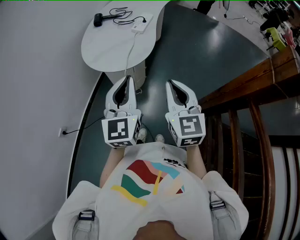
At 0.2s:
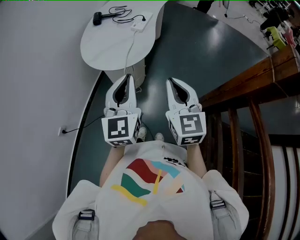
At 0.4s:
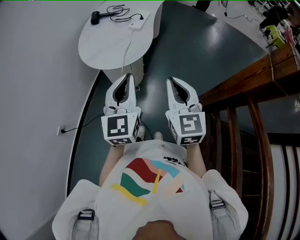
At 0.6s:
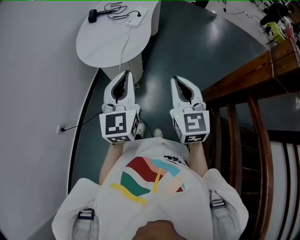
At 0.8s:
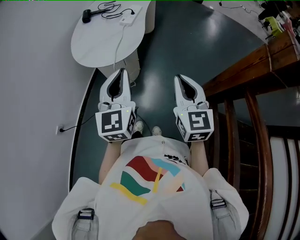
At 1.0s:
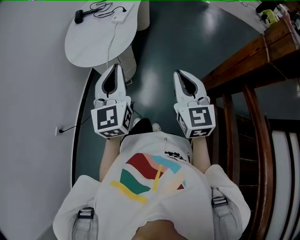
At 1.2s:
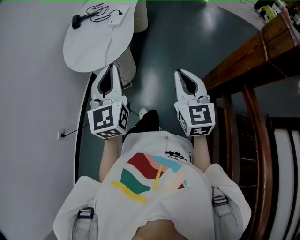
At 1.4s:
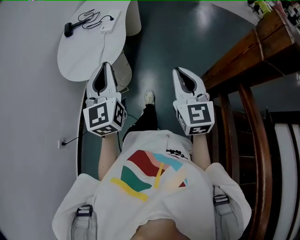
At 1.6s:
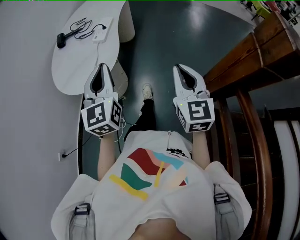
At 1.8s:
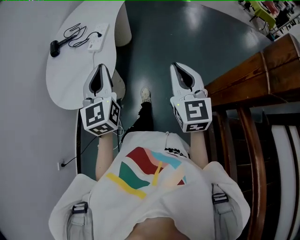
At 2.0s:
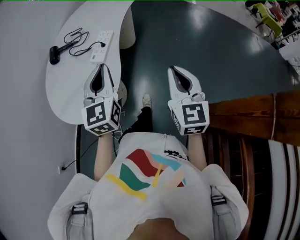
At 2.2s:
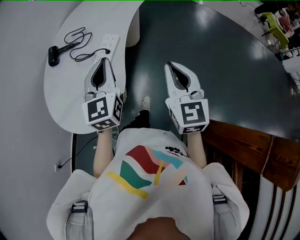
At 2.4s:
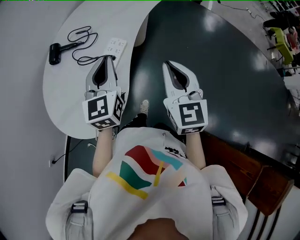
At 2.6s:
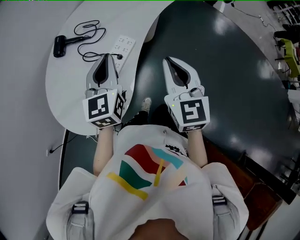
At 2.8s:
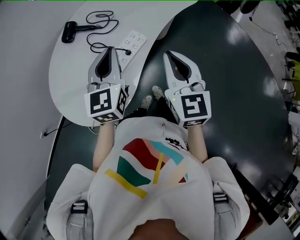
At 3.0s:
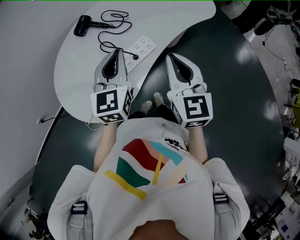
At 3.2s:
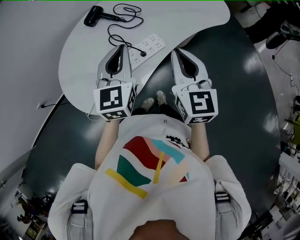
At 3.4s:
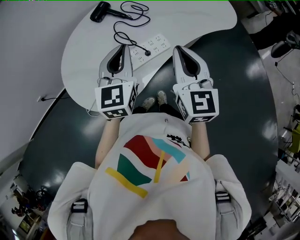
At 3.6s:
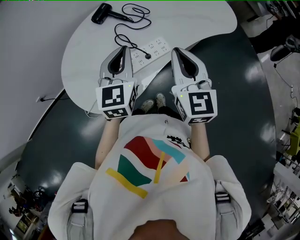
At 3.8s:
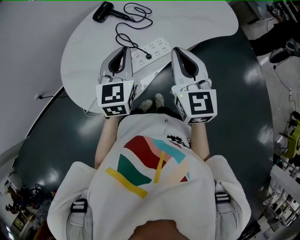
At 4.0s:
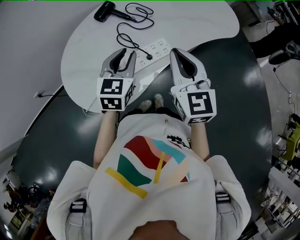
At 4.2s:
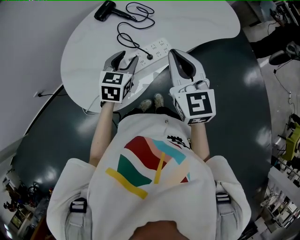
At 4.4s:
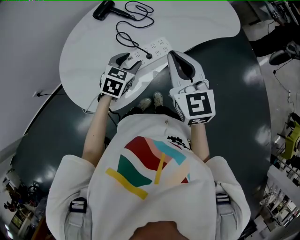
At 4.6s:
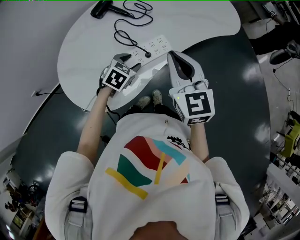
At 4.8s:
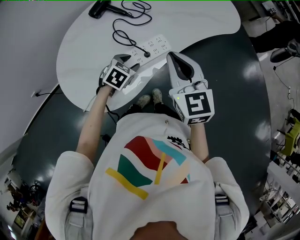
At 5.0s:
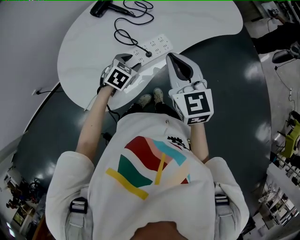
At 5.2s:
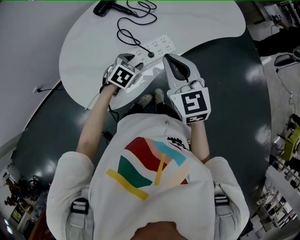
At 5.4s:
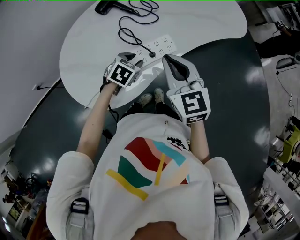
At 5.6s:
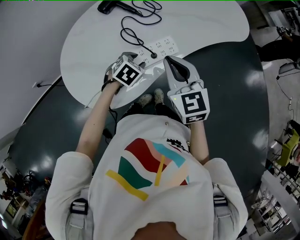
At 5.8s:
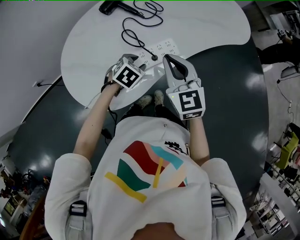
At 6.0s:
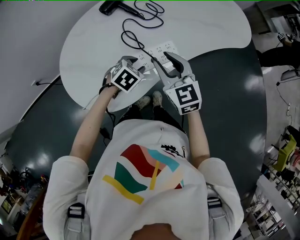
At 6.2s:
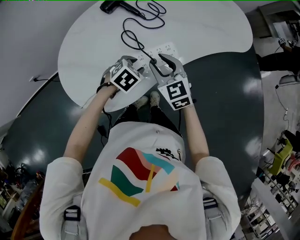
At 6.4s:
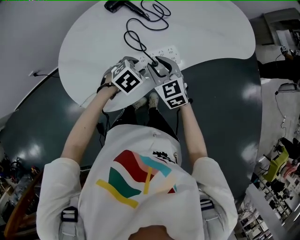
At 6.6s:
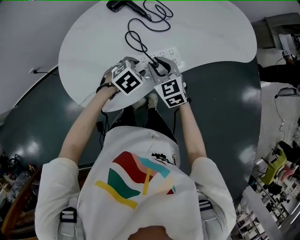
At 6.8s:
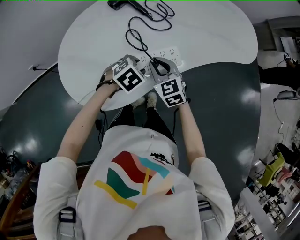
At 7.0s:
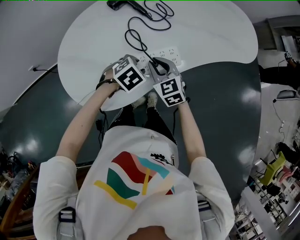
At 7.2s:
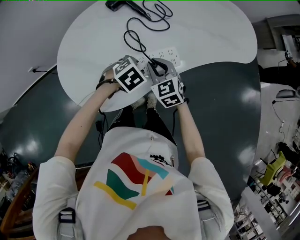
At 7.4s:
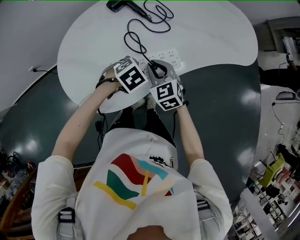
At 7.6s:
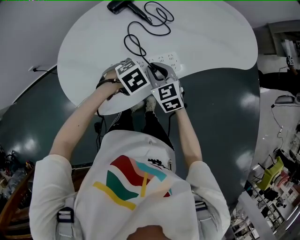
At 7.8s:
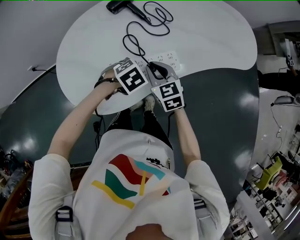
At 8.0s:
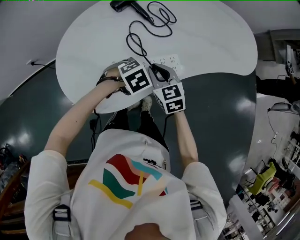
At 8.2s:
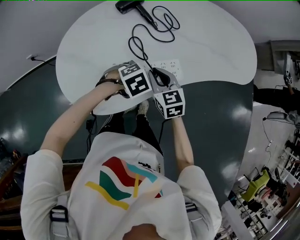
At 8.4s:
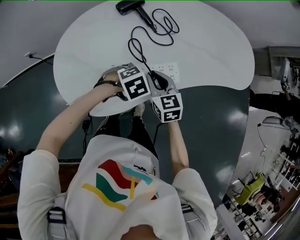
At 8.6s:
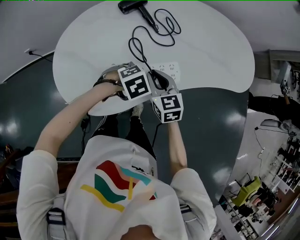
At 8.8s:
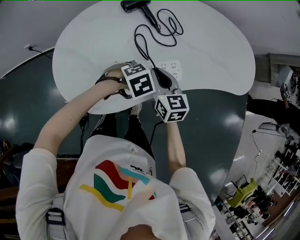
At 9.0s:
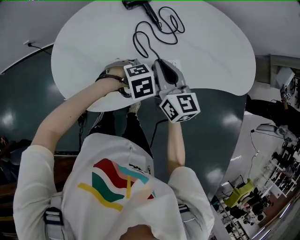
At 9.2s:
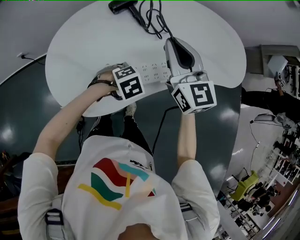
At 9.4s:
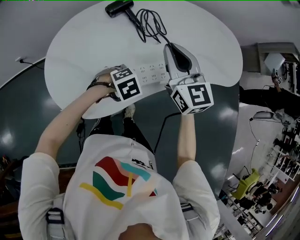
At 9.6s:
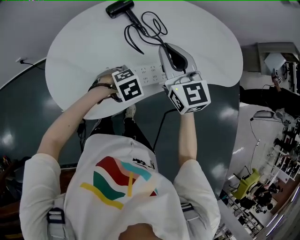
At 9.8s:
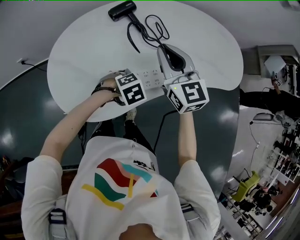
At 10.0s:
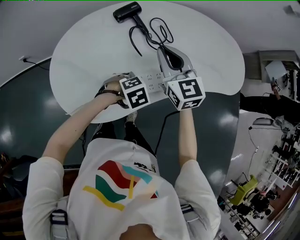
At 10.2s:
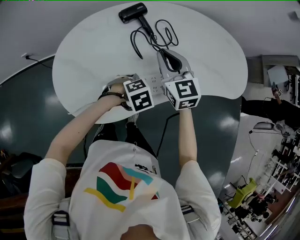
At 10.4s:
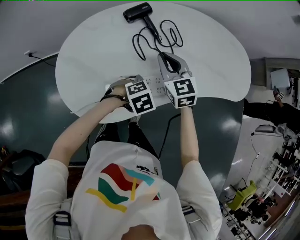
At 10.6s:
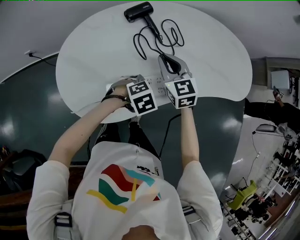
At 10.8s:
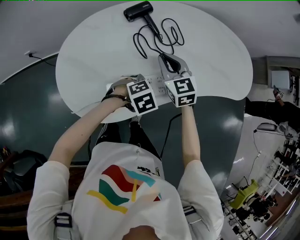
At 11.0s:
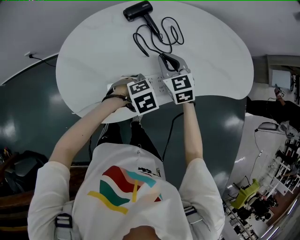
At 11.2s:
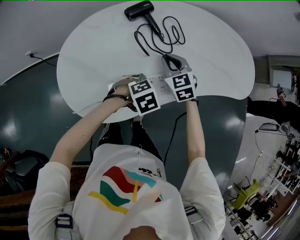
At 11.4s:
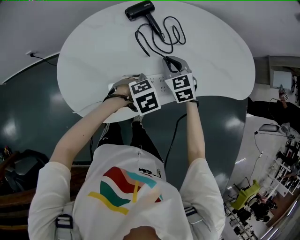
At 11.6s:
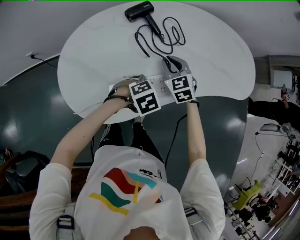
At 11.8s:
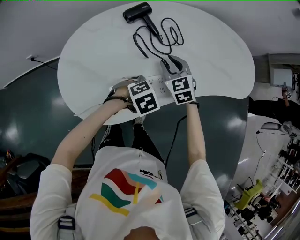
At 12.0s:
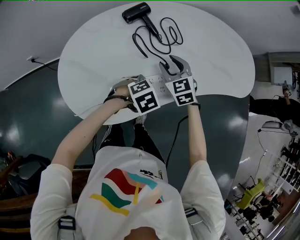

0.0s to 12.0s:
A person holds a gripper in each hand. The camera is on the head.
0.0s to 1.6s: The right gripper shifts about 20 cm to the right and forward, while the left gripper goes some 15 cm forward and to the right.
1.6s to 3.0s: The right gripper moves roughly 50 cm, and changes its angle by about 40 degrees. The left gripper changes place by some 40 cm, and rotates some 30 degrees.
3.0s to 4.4s: The right gripper moves forward, about 5 cm, while the left gripper shifts about 20 cm downward, tips its fingers downward by approximately 30 degrees, and opens up.
4.4s to 6.0s: The right gripper moves downward and to the left, roughly 10 cm, and opens its fingers, while the left gripper goes about 5 cm downward.
6.0s to 7.6s: The right gripper heads downward, covering approximately 10 cm, and closes.
7.6s to 9.0s: The right gripper goes approximately 10 cm upward, and turns by about 20 degrees.
9.0s to 10.4s: The right gripper goes upward and returns, approximately 10 cm each way, and changes its angle by approximately 20 degrees.
10.4s to 12.0s: The right gripper travels downward by about 5 cm, and opens its fingers.

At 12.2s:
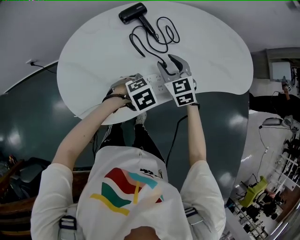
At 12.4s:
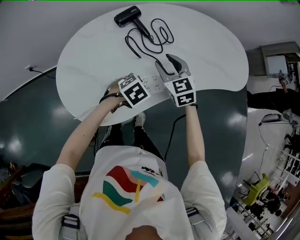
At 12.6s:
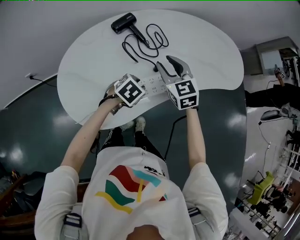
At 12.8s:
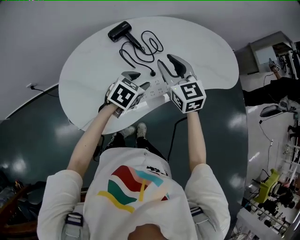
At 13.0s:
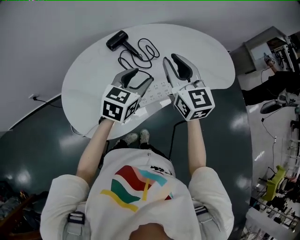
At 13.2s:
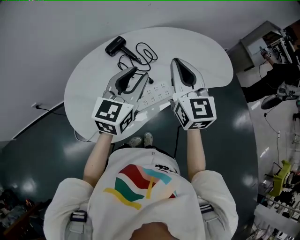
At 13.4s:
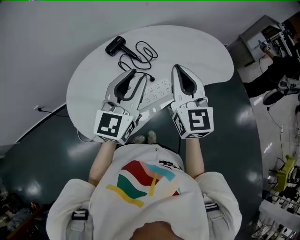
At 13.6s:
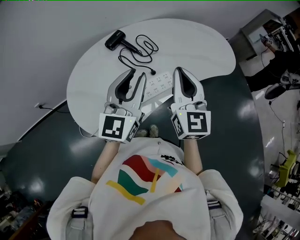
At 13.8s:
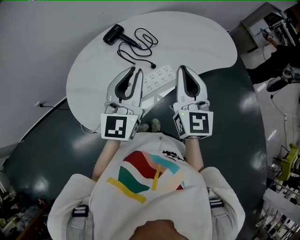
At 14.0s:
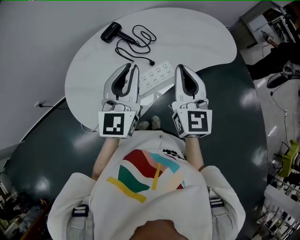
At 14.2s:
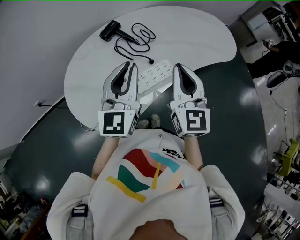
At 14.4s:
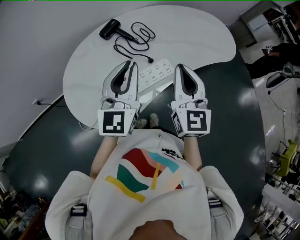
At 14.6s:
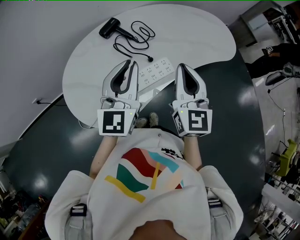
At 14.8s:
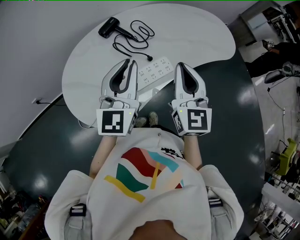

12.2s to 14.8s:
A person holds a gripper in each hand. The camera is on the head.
12.2s to 13.4s: Both grippers travel together upward, about 30 cm. The left gripper angles its fingers upward, by approximately 80 degrees, while the right gripper tilts its fingers about 30 degrees upward, and closes its fingers.
13.4s to 14.8s: The right gripper is displaced downward by some 5 cm.

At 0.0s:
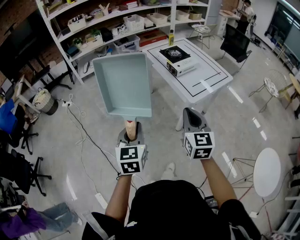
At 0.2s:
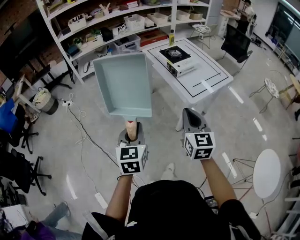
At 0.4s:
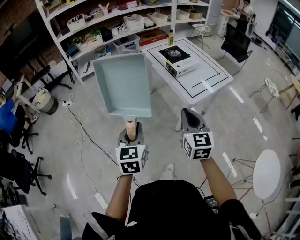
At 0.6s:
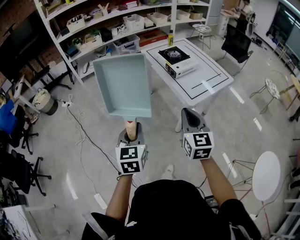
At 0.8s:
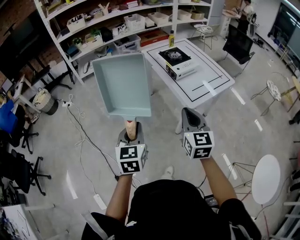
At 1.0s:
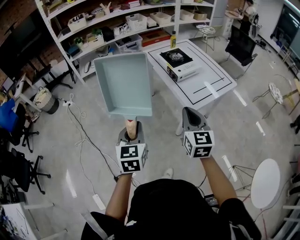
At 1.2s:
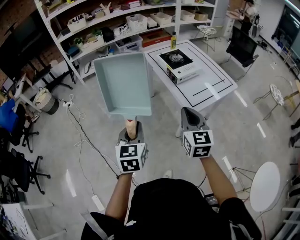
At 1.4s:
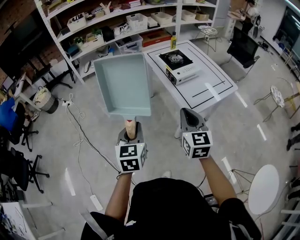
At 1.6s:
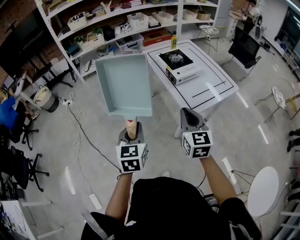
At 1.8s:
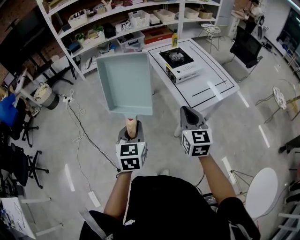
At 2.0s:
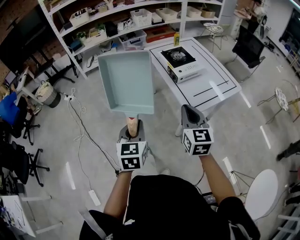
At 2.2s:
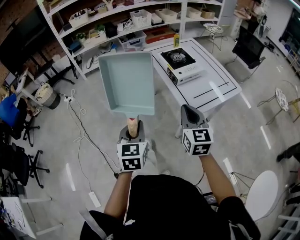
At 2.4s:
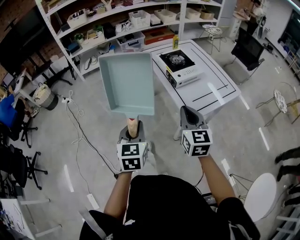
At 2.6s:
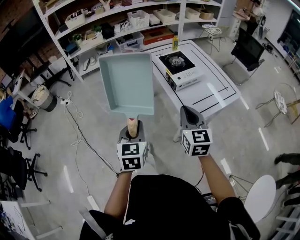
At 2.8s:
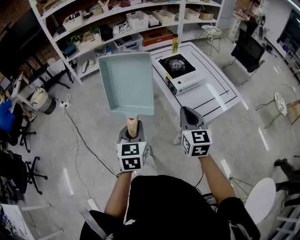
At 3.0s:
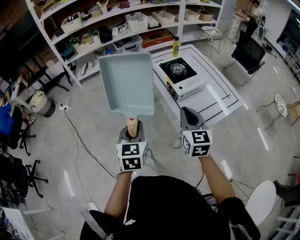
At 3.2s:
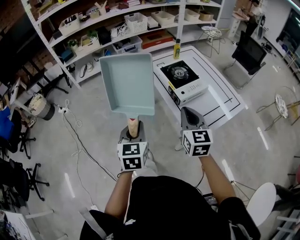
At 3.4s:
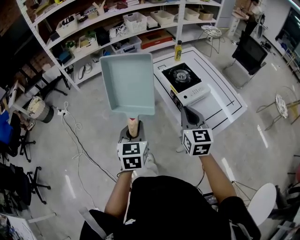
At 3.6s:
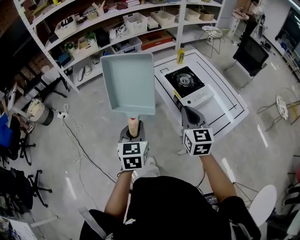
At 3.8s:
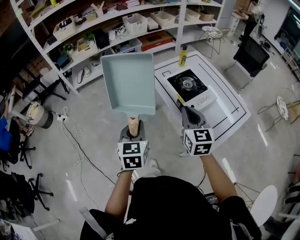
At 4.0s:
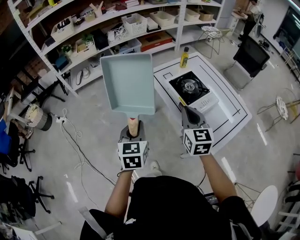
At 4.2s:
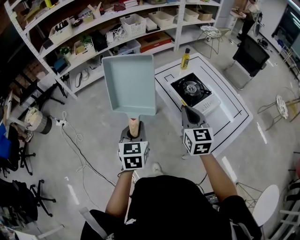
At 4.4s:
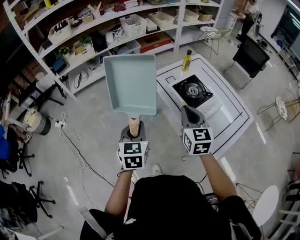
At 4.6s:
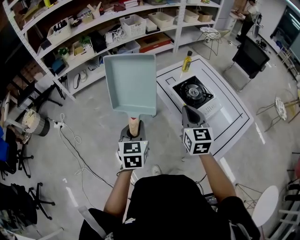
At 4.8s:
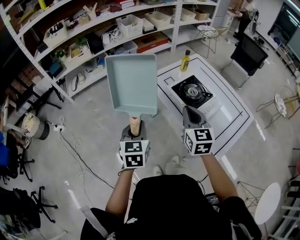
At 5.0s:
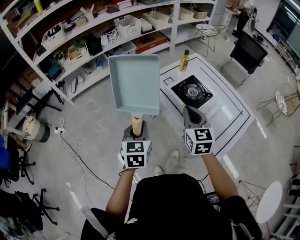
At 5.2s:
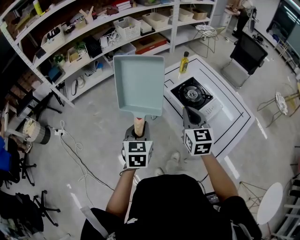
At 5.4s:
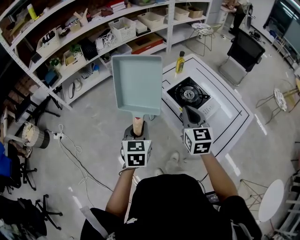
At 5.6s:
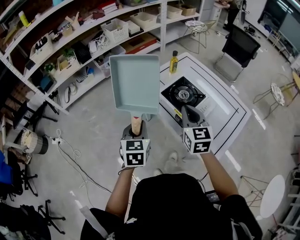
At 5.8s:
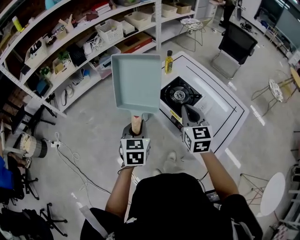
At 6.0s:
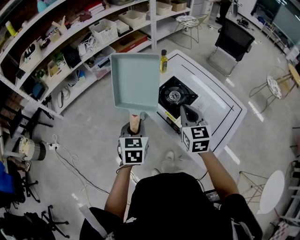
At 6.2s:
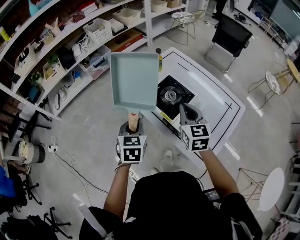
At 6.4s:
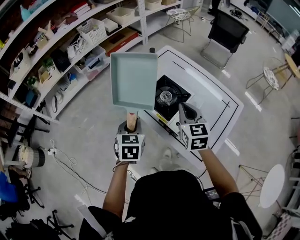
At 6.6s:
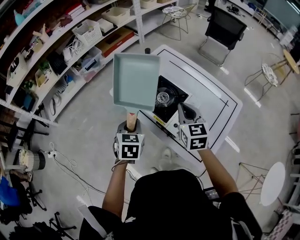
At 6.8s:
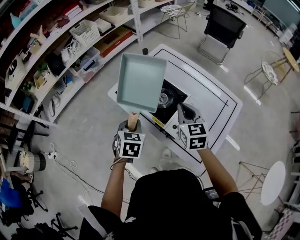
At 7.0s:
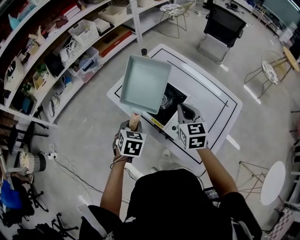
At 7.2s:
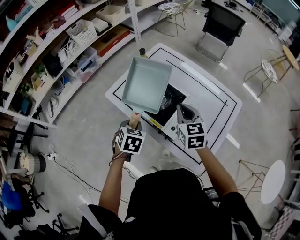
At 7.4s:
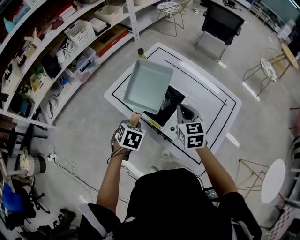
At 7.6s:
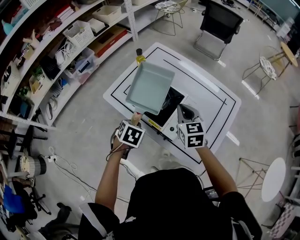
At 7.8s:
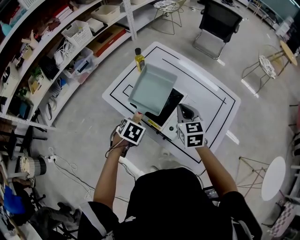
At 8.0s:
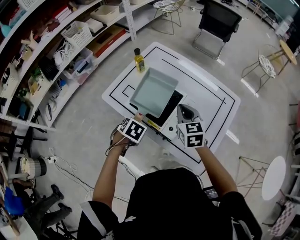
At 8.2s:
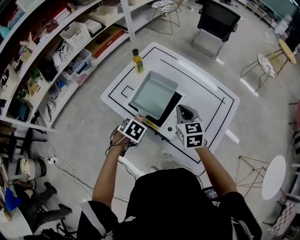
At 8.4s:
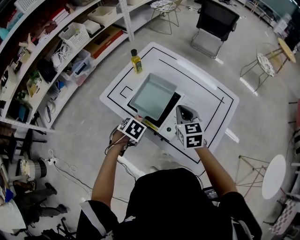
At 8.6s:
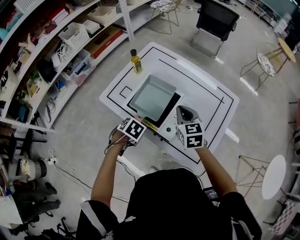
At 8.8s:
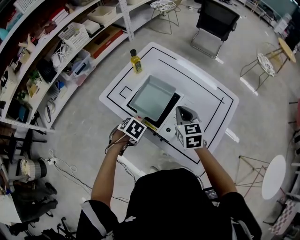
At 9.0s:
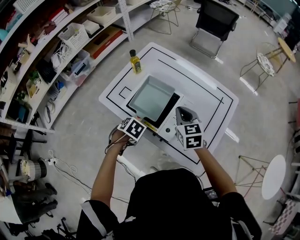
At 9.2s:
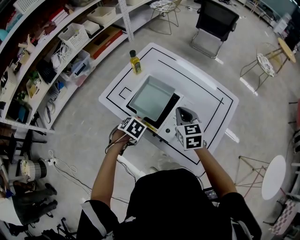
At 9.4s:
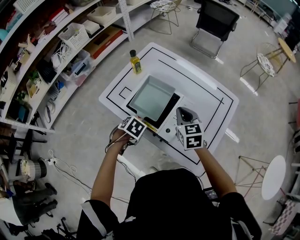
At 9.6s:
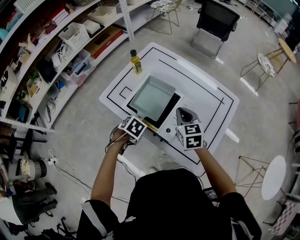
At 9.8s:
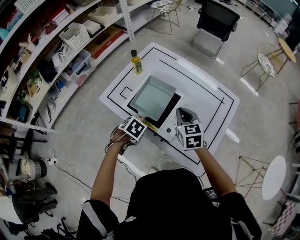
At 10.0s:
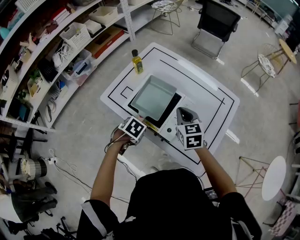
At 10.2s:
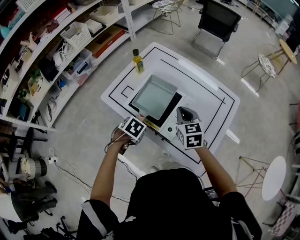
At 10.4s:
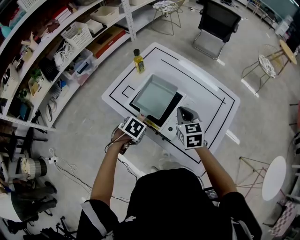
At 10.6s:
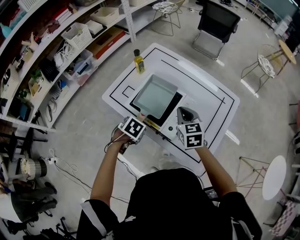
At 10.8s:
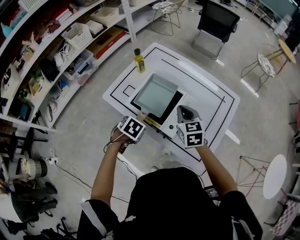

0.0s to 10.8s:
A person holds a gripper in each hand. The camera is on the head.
0.0s to 1.6s: Both grippers move forward and to the right, about 15 cm.
1.6s to 3.0s: The grippers both shift forward by approximately 15 cm.
3.0s to 4.6s: Both grippers move forward and to the left, roughly 25 cm.
4.6s to 6.2s: The left gripper goes some 20 cm forward and to the right. The right gripper travels to the right and forward by some 15 cm.
6.2s to 7.8s: The right gripper shifts about 10 cm downward, to the right and forward, while the left gripper heads downward, forward and to the right, covering about 15 cm, and tips its fingers downward by approximately 30 degrees.
7.8s to 9.2s: The grippers move only a little.
9.2s to 10.8s: The left gripper opens up.
